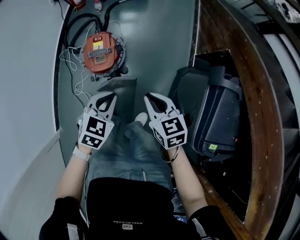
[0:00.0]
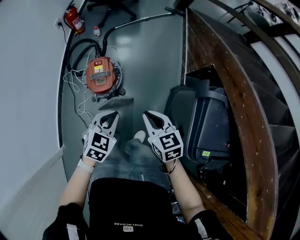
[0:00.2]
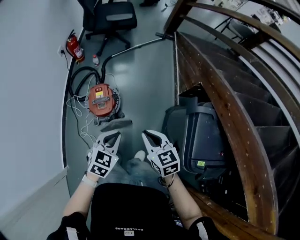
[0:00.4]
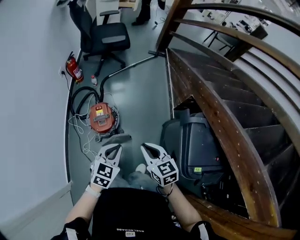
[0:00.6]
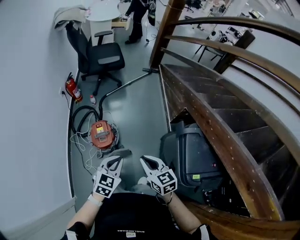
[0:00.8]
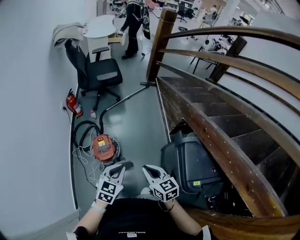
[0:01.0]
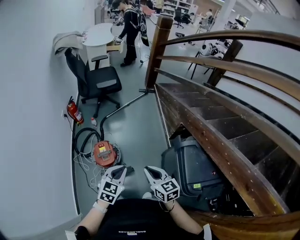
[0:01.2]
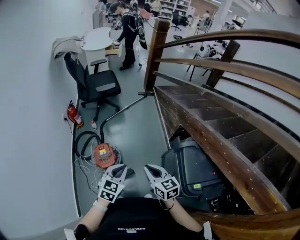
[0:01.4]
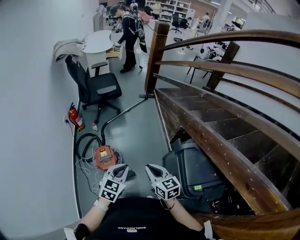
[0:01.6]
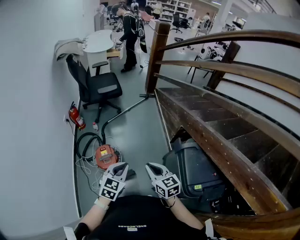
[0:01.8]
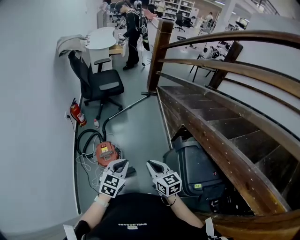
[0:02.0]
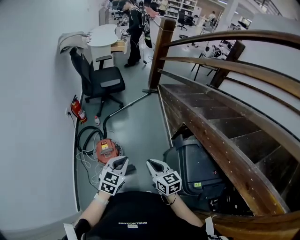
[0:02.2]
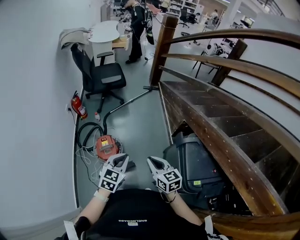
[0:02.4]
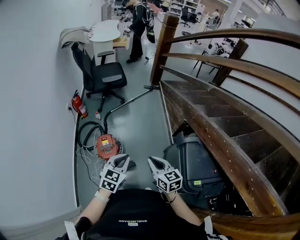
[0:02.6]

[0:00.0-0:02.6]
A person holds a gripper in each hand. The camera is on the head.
0:00.0 to 0:01.2: Both grippers move upward, about 30 cm. The right gripper changes its angle by some 20 degrees.
0:01.2 to 0:02.6: The grippers make only small movements.

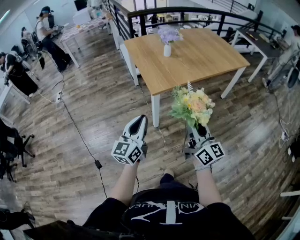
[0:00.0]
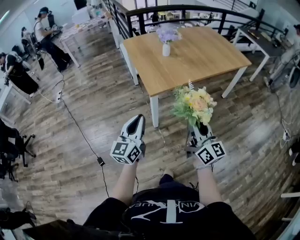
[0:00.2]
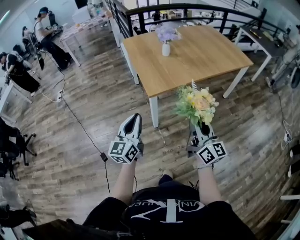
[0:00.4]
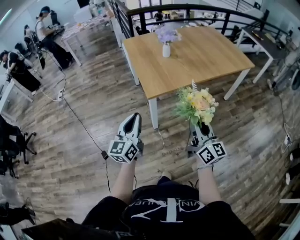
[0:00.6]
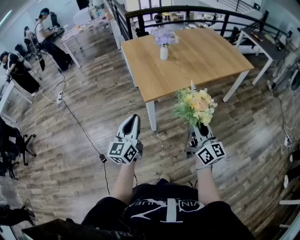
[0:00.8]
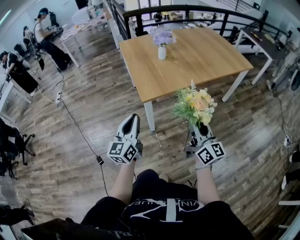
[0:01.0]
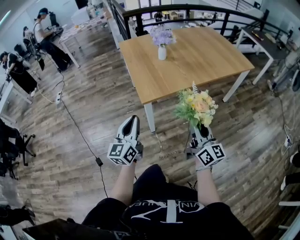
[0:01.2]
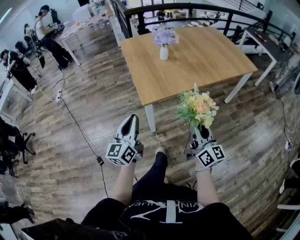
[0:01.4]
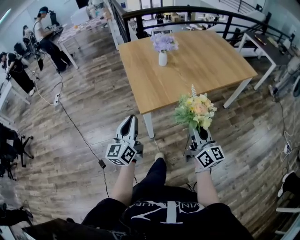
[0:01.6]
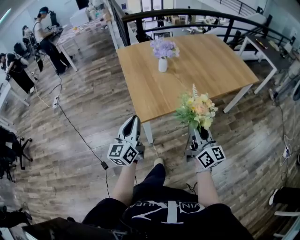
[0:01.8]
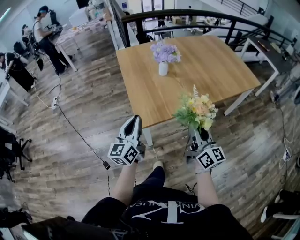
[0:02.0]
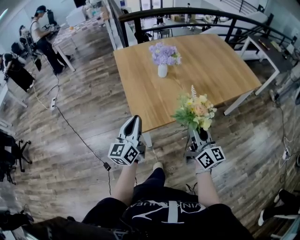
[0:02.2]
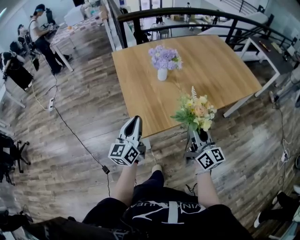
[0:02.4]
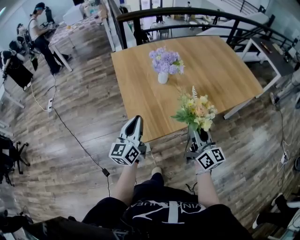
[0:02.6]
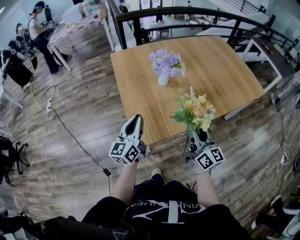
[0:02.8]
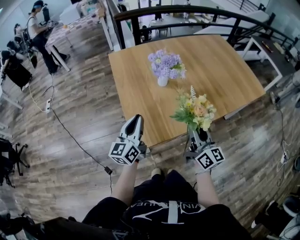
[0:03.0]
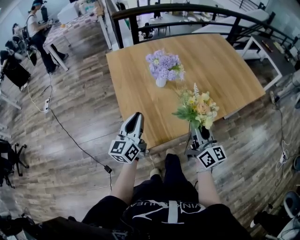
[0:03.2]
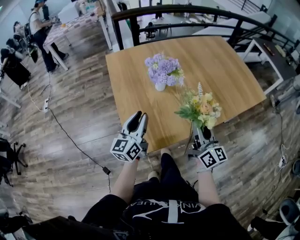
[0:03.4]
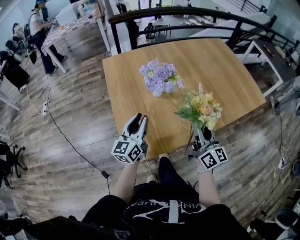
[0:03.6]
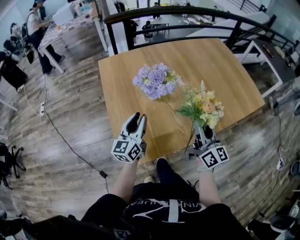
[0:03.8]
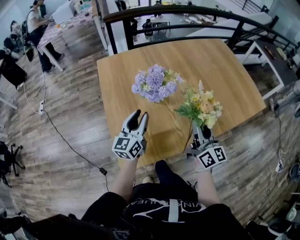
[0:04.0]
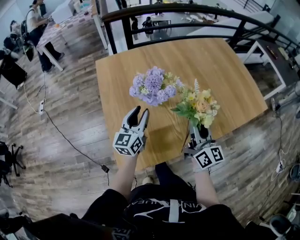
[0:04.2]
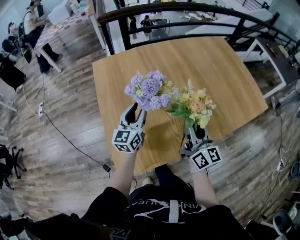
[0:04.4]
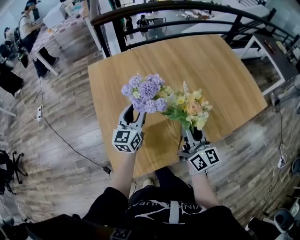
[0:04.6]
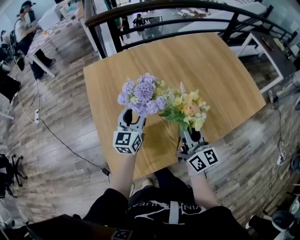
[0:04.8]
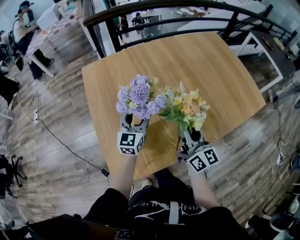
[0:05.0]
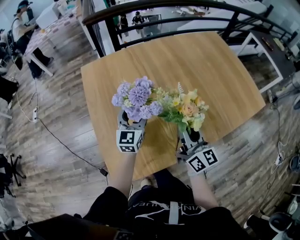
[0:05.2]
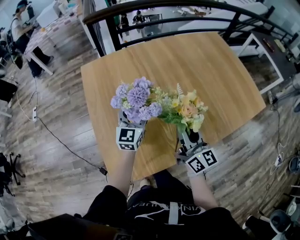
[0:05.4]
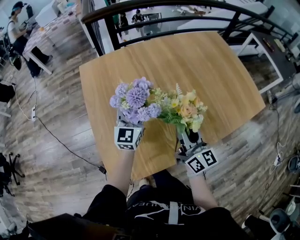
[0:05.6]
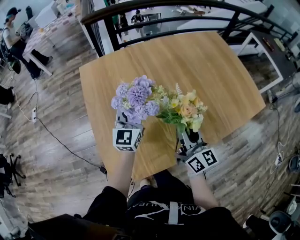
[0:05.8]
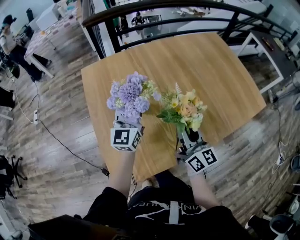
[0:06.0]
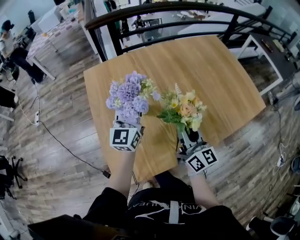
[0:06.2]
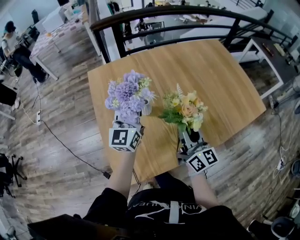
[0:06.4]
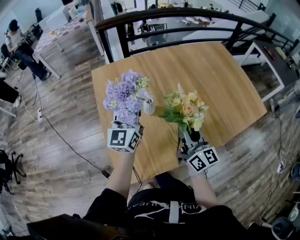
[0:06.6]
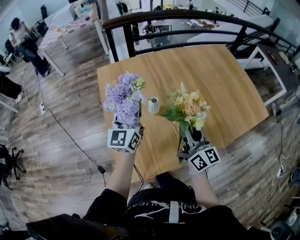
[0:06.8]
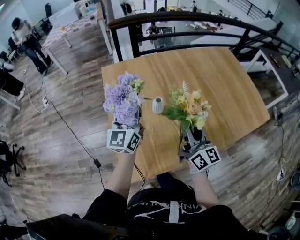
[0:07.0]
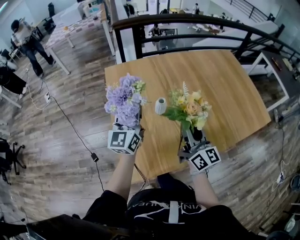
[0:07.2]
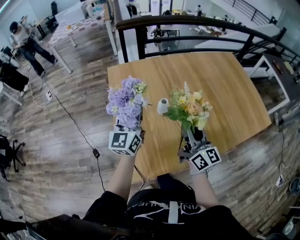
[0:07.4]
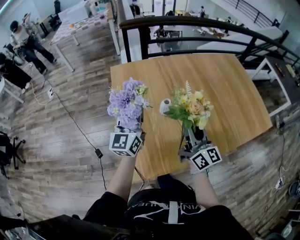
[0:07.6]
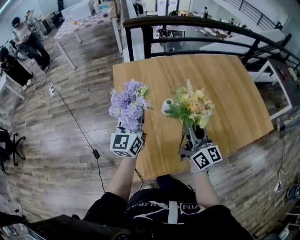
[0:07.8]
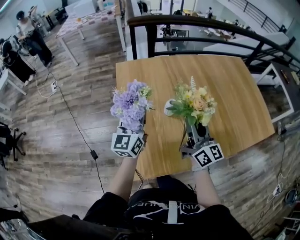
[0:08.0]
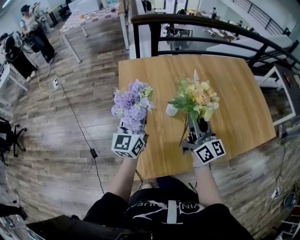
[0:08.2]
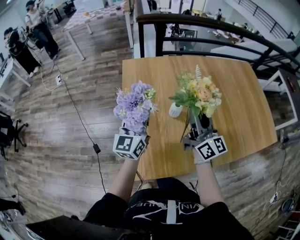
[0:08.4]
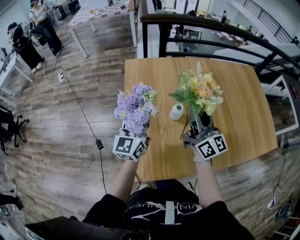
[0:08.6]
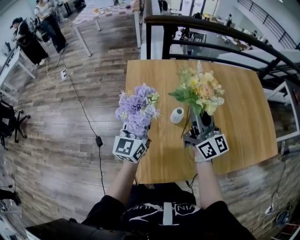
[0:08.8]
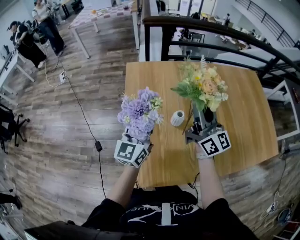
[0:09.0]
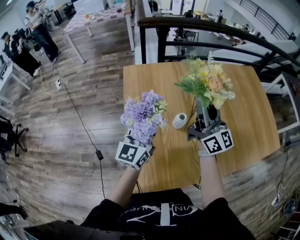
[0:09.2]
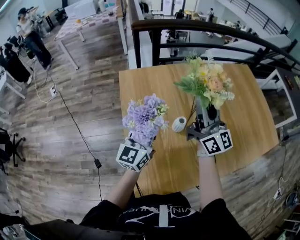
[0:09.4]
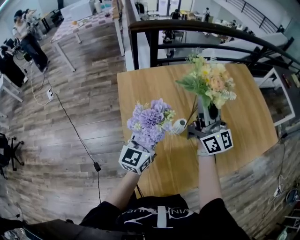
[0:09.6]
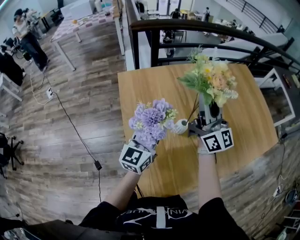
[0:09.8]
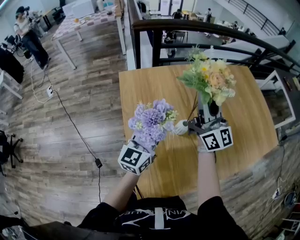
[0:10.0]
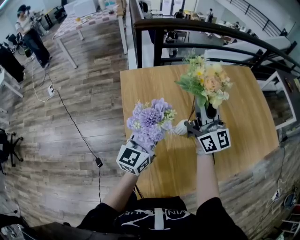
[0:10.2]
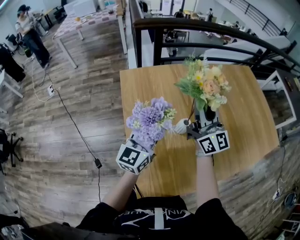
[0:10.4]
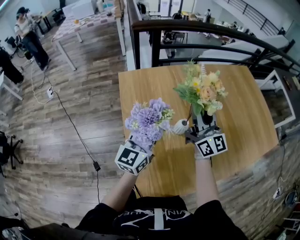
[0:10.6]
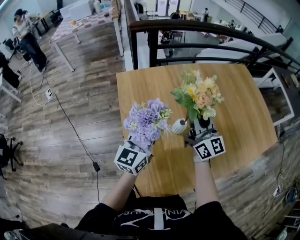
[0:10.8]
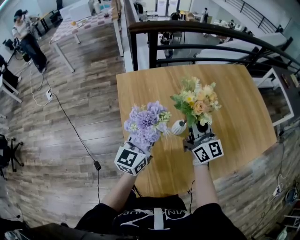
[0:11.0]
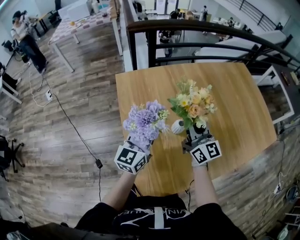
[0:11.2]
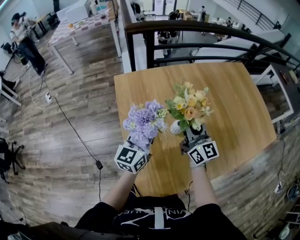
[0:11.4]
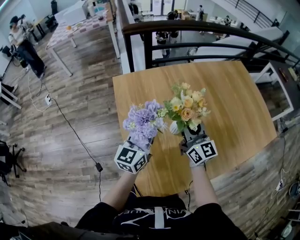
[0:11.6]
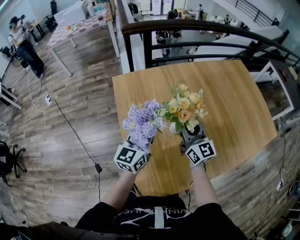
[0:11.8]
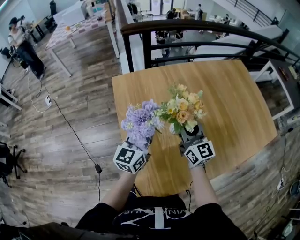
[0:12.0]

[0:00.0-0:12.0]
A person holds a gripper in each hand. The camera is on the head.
0:00.0 to 0:01.6: The right gripper is displaced forward and to the right by some 20 cm; the left gripper heads forward, covering about 15 cm.
0:01.6 to 0:03.0: Both grippers move forward, about 25 cm.
0:03.0 to 0:04.4: The grippers both shift forward by about 20 cm. The left gripper opens.
0:04.4 to 0:06.0: The left gripper moves upward and forward, approximately 10 cm, and opens and closes again.
0:06.0 to 0:07.6: The left gripper travels to the left, backward and upward by about 15 cm. The right gripper heads to the left, covering approximately 10 cm.
0:07.6 to 0:09.0: The right gripper heads forward and upward, covering roughly 15 cm.
0:09.0 to 0:10.4: The right gripper ends up approximately 5 cm from where it was.
0:10.4 to 0:12.0: The right gripper moves downward, some 10 cm.

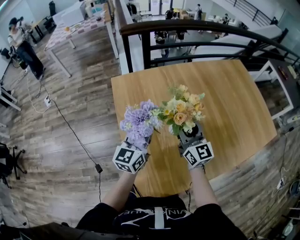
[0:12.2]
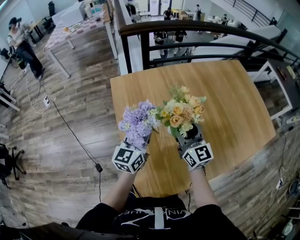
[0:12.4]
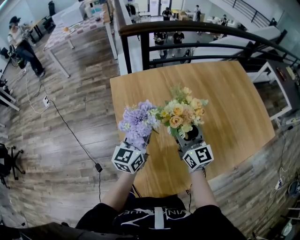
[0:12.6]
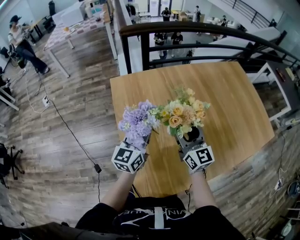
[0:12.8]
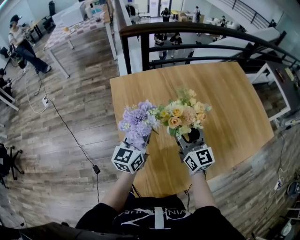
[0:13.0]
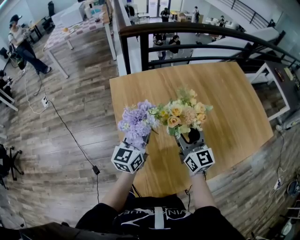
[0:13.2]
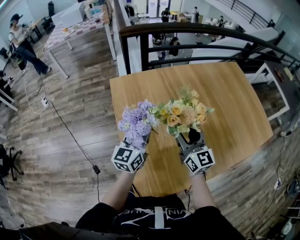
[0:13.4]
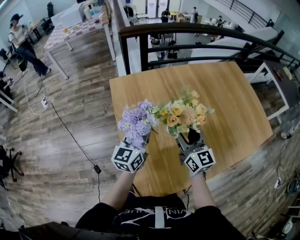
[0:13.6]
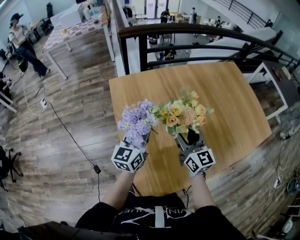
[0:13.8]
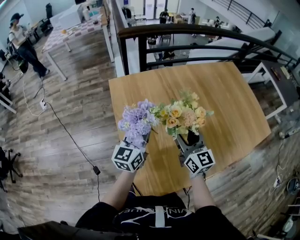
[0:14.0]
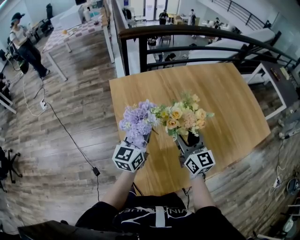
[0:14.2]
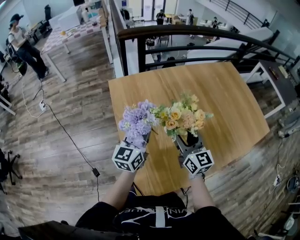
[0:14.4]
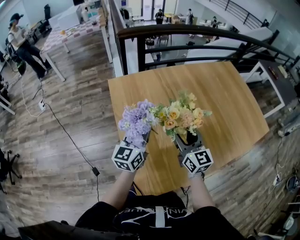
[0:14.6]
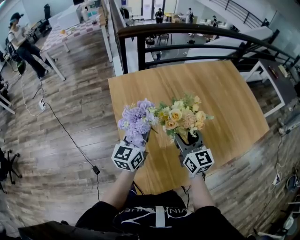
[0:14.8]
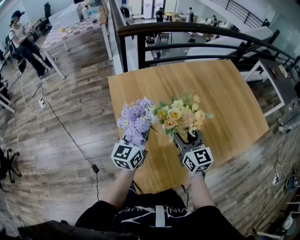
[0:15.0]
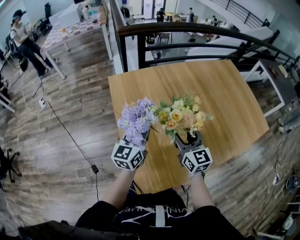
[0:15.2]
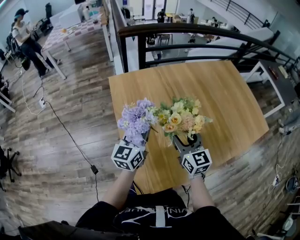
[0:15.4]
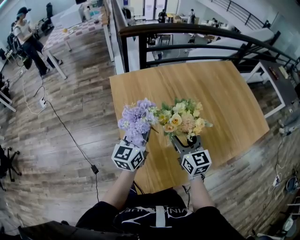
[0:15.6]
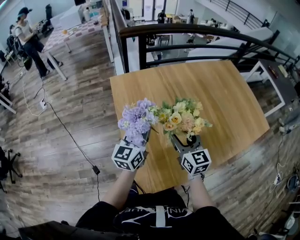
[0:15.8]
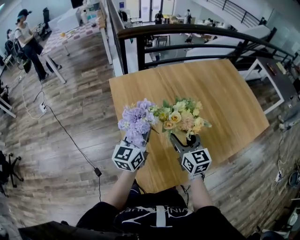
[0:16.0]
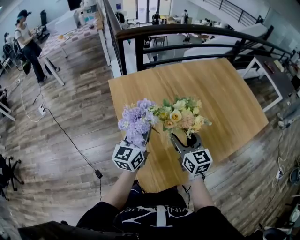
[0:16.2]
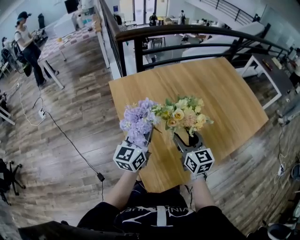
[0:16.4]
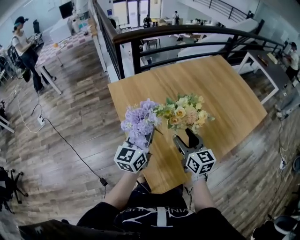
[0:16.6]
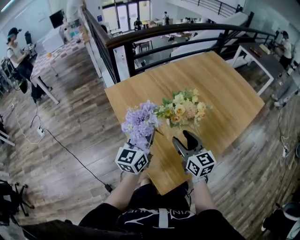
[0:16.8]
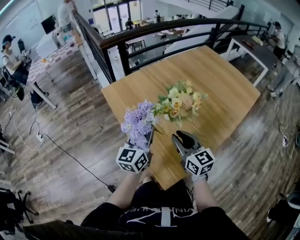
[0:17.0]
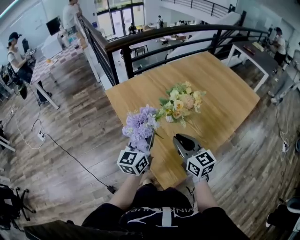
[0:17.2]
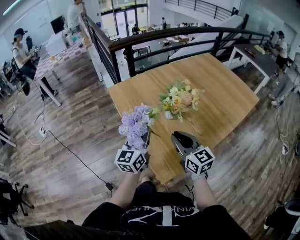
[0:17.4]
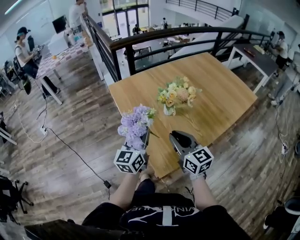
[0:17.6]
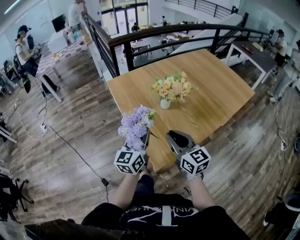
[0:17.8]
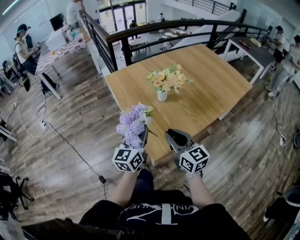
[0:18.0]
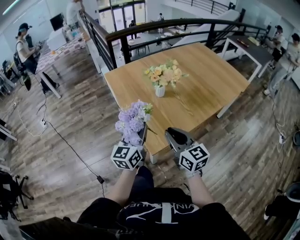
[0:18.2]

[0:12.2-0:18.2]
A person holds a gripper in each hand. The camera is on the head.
0:12.2 to 0:13.8: The grippers make only small movements.
0:13.8 to 0:15.2: The grippers stay close to where they were, moving slightly.
0:15.2 to 0:16.6: The right gripper changes place by roughly 5 cm.
0:16.6 to 0:18.2: The grippers both shift backward by approximately 25 cm. The right gripper closes up.

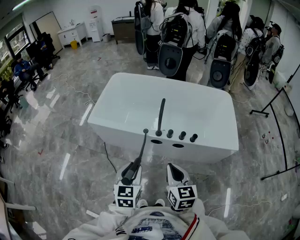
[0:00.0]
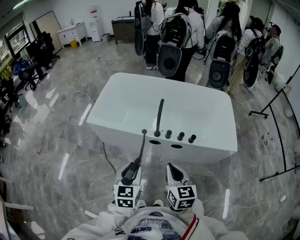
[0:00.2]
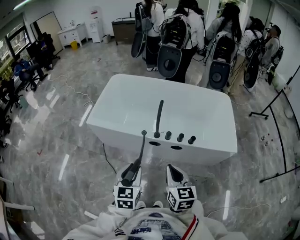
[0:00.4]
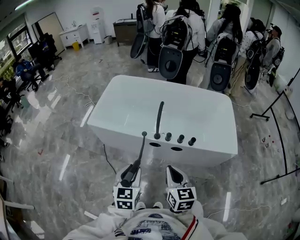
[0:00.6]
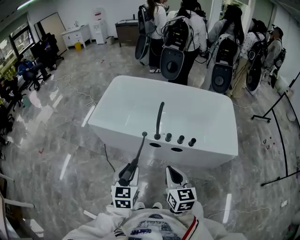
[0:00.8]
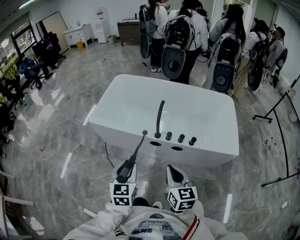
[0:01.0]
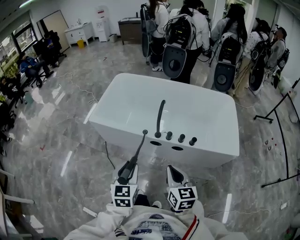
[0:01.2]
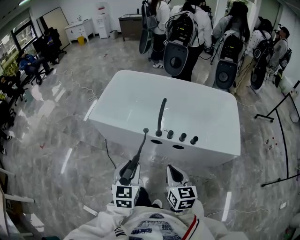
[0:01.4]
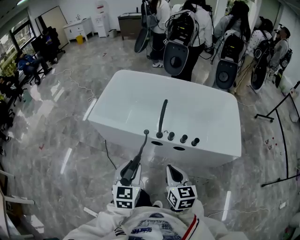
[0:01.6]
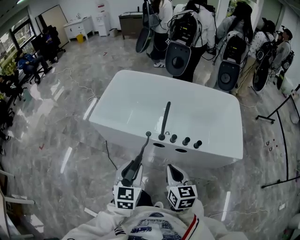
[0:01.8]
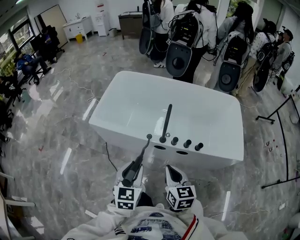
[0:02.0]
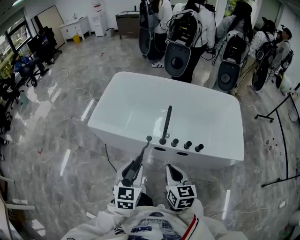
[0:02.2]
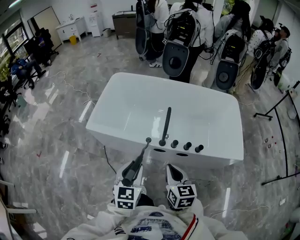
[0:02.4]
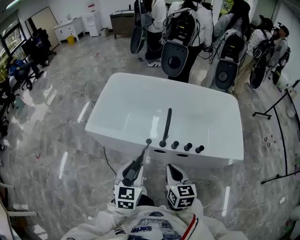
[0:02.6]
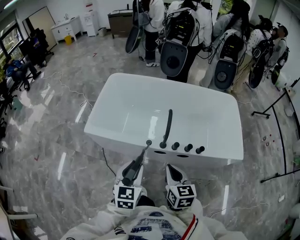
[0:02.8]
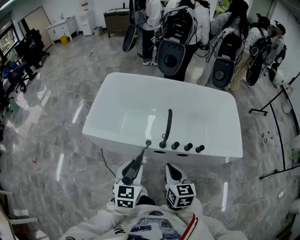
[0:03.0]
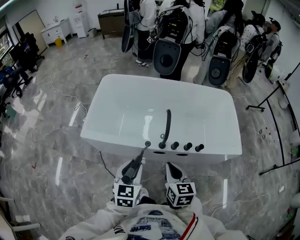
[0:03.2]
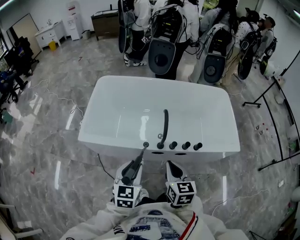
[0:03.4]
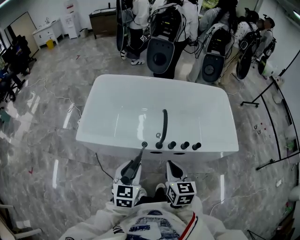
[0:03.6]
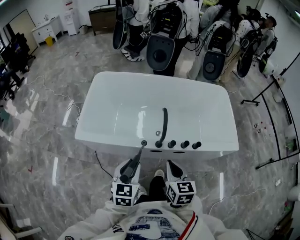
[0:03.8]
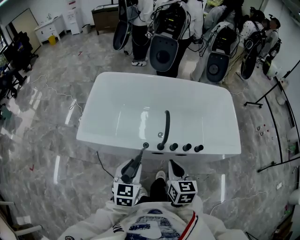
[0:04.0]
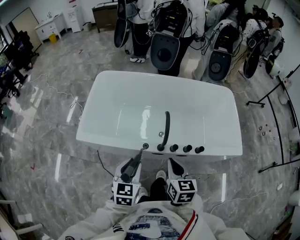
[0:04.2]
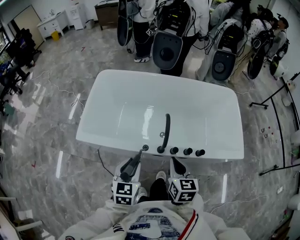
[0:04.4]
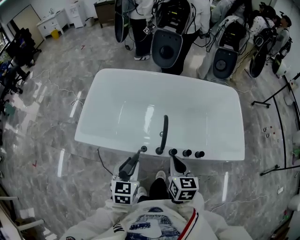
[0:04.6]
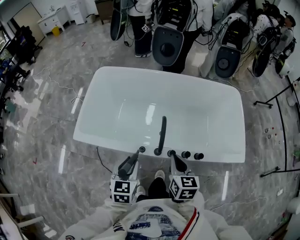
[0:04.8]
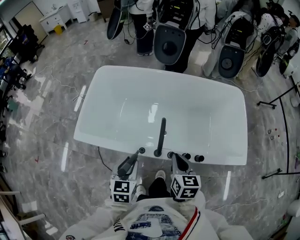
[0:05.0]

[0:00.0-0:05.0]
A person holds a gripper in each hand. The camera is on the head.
0:00.0 to 0:01.6: The grippers stay close to where they were, moving slightly.
0:01.6 to 0:03.4: Both grippers move forward and to the left, roughly 15 cm.
0:03.4 to 0:05.0: The right gripper is displaced forward and to the right by some 15 cm, while the left gripper moves forward and downward, some 15 cm.
